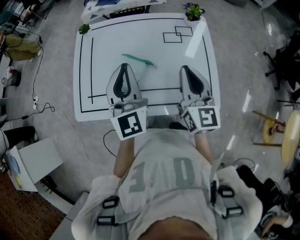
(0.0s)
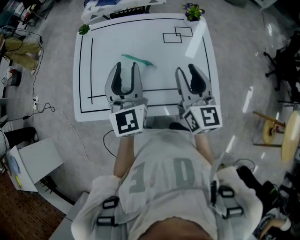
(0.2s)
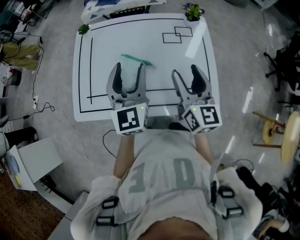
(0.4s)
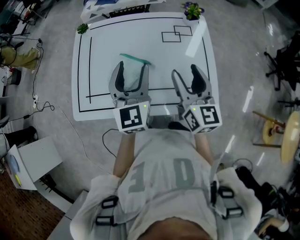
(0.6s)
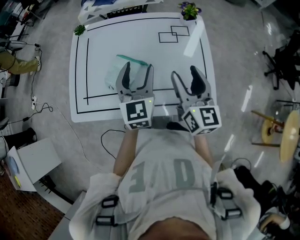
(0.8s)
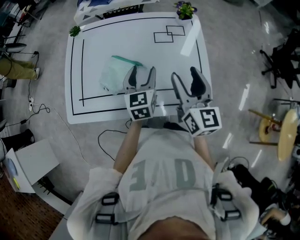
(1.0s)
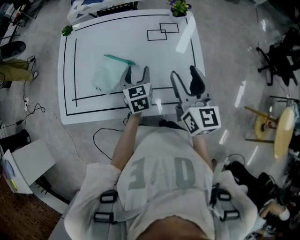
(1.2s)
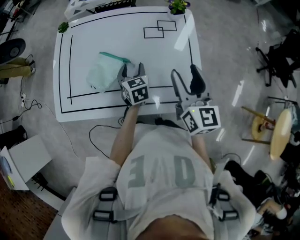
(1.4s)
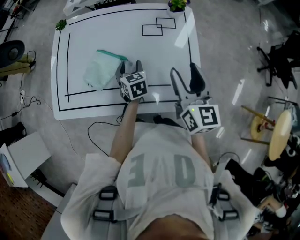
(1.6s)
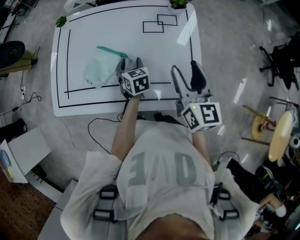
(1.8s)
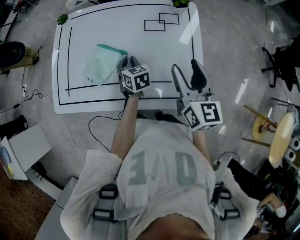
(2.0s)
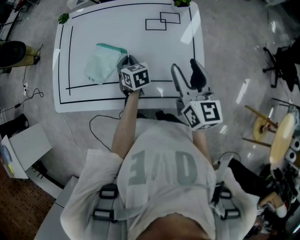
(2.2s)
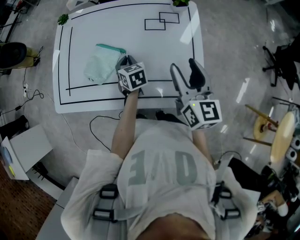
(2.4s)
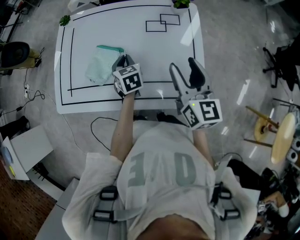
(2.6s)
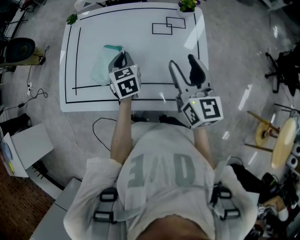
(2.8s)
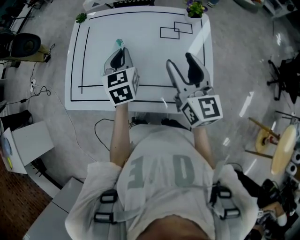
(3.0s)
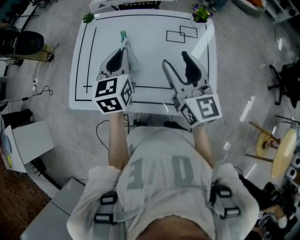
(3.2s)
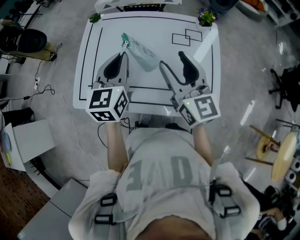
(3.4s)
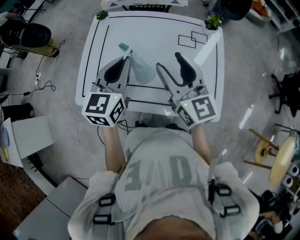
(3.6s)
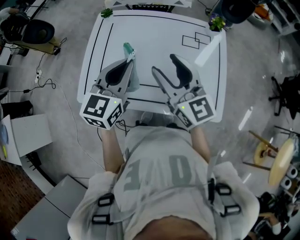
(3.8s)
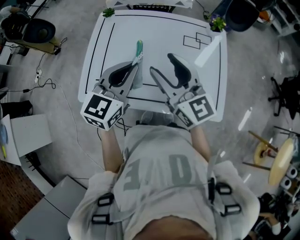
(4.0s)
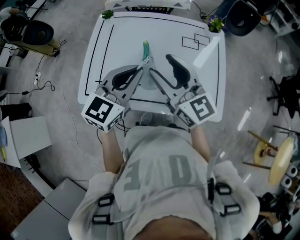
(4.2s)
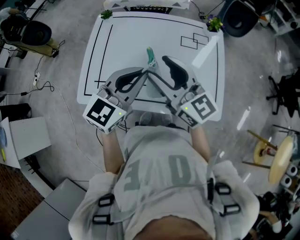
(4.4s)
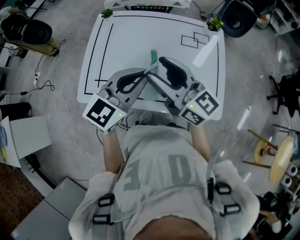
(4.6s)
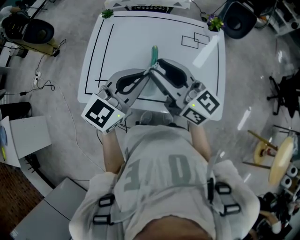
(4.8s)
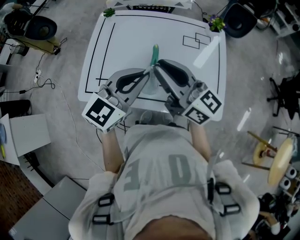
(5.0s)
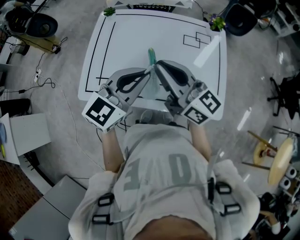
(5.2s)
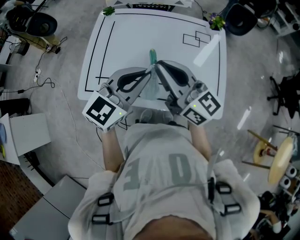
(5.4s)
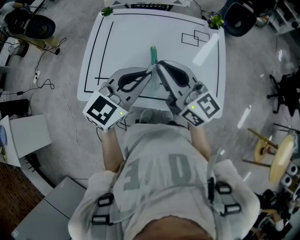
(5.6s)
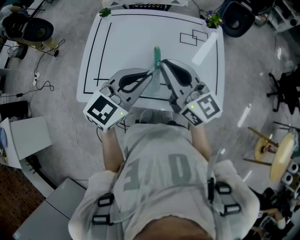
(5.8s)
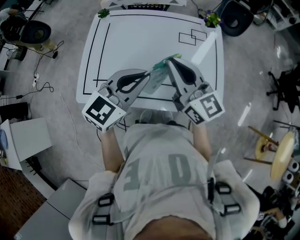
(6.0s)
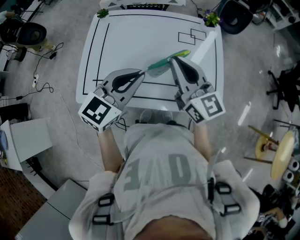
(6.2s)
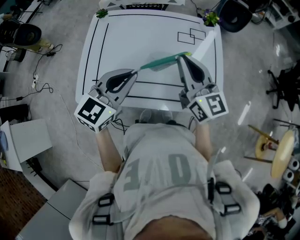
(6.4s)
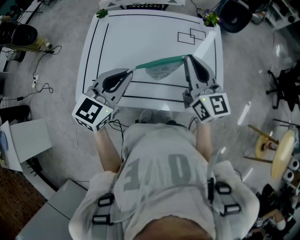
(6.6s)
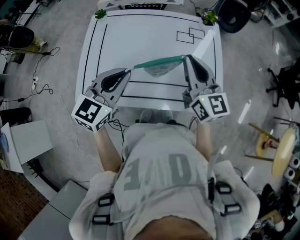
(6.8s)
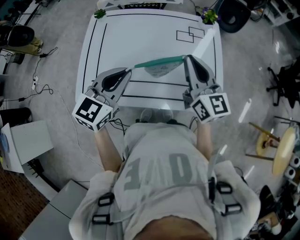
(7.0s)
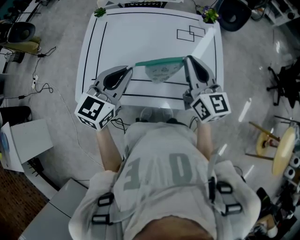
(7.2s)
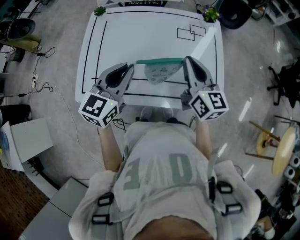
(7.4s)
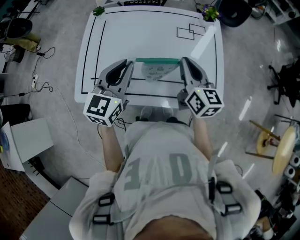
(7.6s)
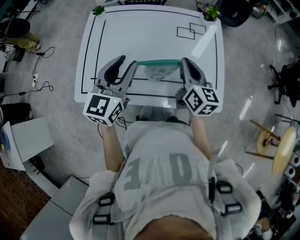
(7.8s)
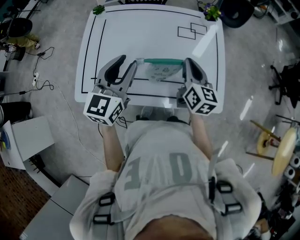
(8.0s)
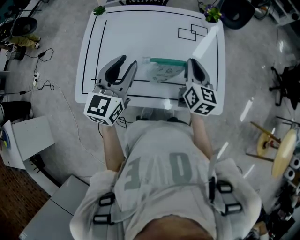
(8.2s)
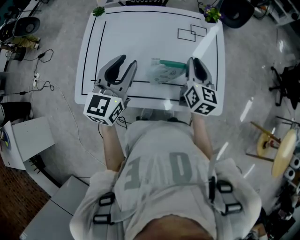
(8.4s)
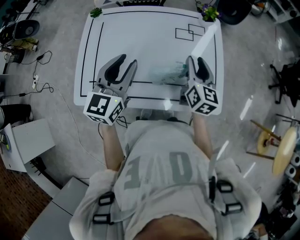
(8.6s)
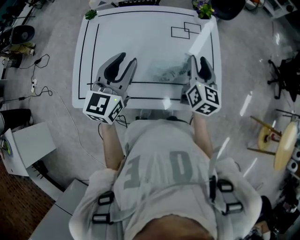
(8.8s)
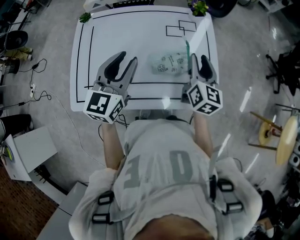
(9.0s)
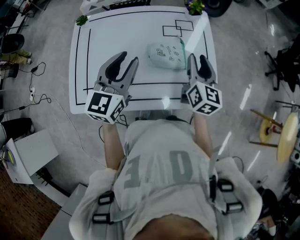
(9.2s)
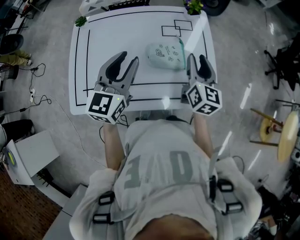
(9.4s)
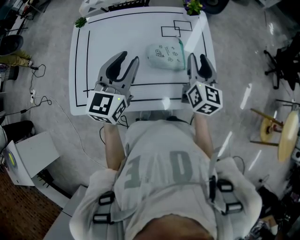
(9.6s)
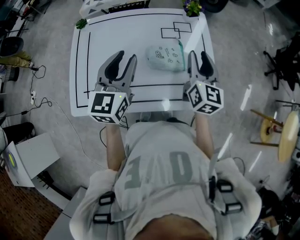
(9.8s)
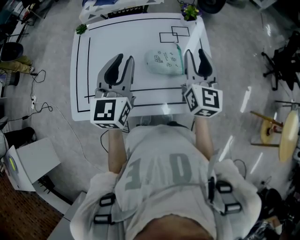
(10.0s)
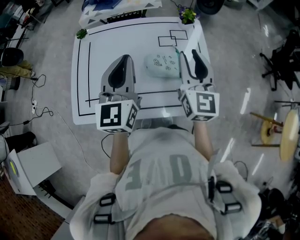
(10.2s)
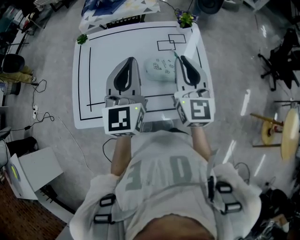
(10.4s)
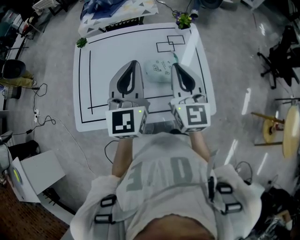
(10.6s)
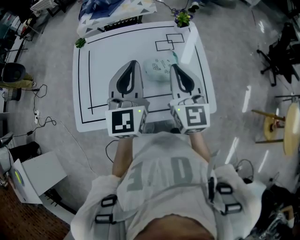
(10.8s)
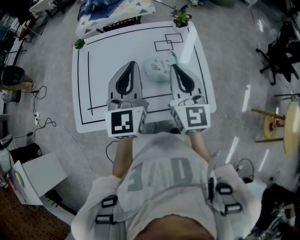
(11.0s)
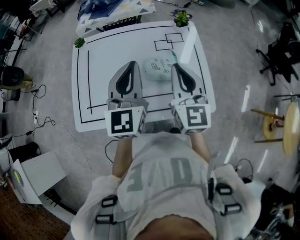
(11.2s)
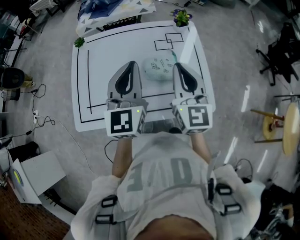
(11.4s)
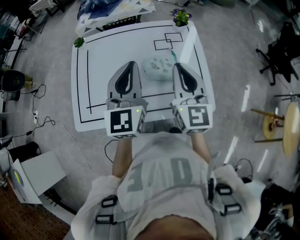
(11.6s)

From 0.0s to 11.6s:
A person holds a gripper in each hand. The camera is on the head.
From 0.0s to 1.4s: The right gripper shifts roughly 10 cm to the right, and opens its fingers; the left gripper heads downward, covering some 25 cm, points its fingers some 40 degrees further downward, and opens.
From 1.4s to 2.8s: The left gripper shifts roughly 10 cm upward and to the left, and closes up.
From 2.8s to 4.4s: The left gripper is displaced upward and backward by about 20 cm, and rotates some 50 degrees, while the right gripper shifts about 20 cm to the left, and changes its angle by roughly 30 degrees.
From 4.4s to 5.8s: The right gripper closes.
From 5.8s to 7.2s: The left gripper is displaced to the left by some 5 cm. Meanwhile the right gripper moves to the right, about 10 cm, and changes its angle by about 20 degrees.
From 7.2s to 8.8s: The right gripper heads to the right, downward and forward, covering roughly 10 cm, rotates about 30 degrees, and opens up, while the left gripper moves forward, some 5 cm, and opens its fingers.
From 8.8s to 10.2s: The left gripper shifts roughly 5 cm upward, and closes up. Meanwhile the right gripper heads upward, covering approximately 10 cm, and turns by some 20 degrees.
From 10.2s to 11.6s: The right gripper closes up.

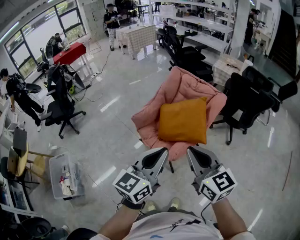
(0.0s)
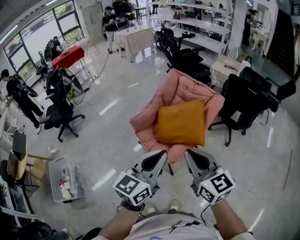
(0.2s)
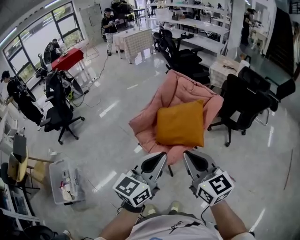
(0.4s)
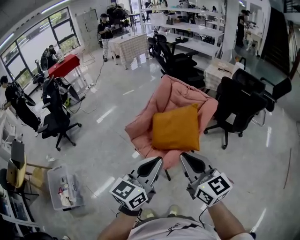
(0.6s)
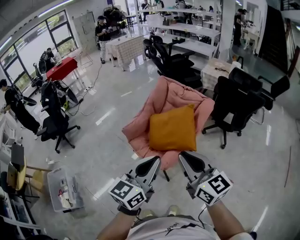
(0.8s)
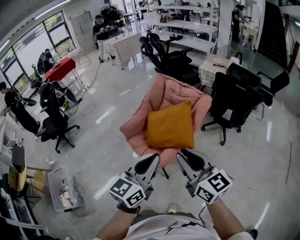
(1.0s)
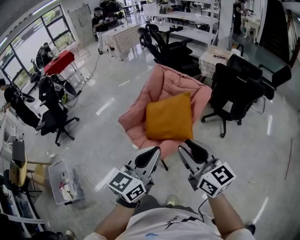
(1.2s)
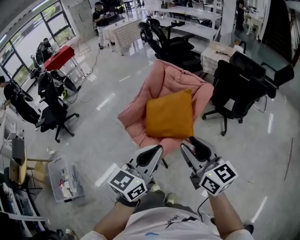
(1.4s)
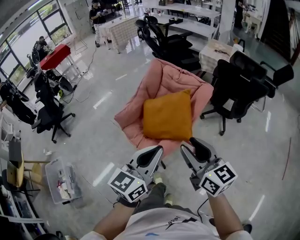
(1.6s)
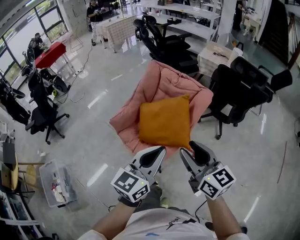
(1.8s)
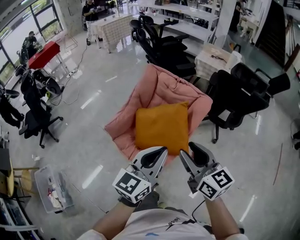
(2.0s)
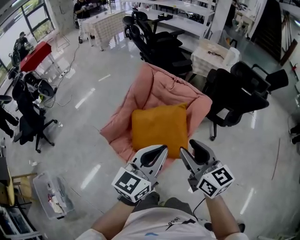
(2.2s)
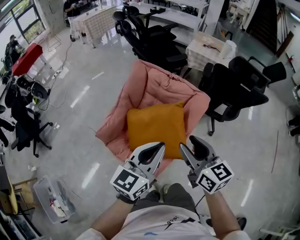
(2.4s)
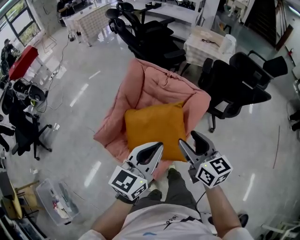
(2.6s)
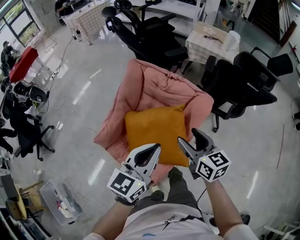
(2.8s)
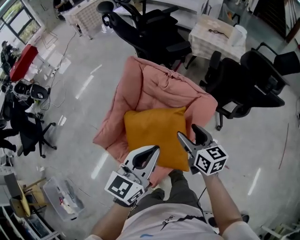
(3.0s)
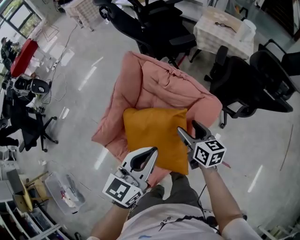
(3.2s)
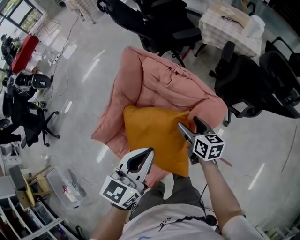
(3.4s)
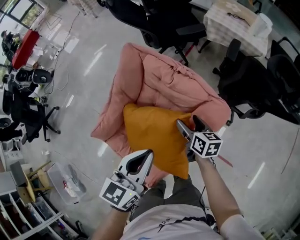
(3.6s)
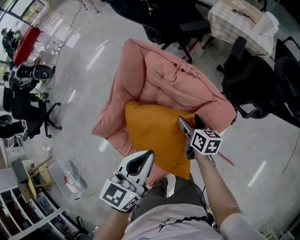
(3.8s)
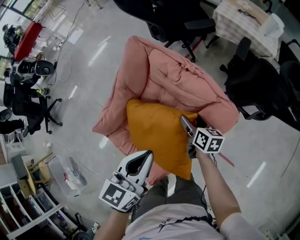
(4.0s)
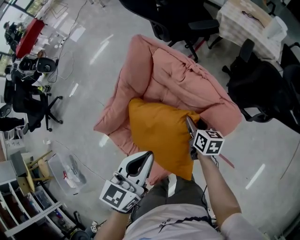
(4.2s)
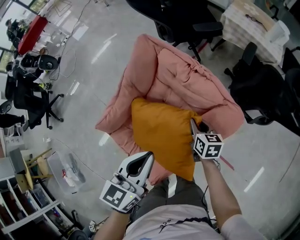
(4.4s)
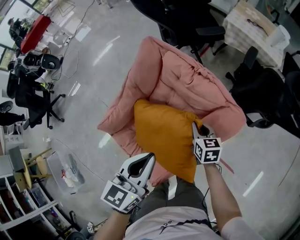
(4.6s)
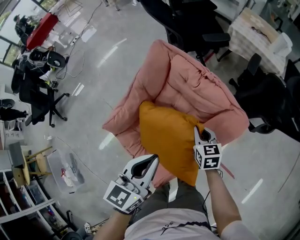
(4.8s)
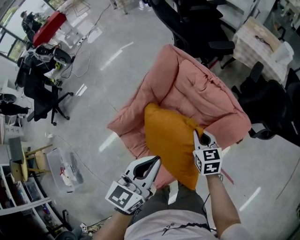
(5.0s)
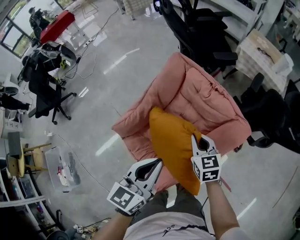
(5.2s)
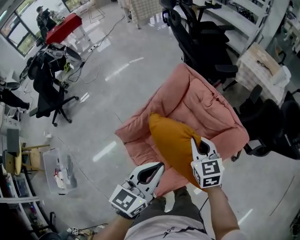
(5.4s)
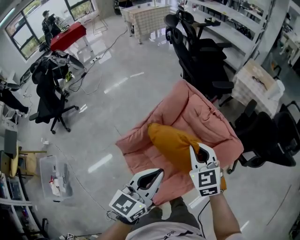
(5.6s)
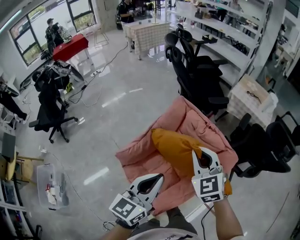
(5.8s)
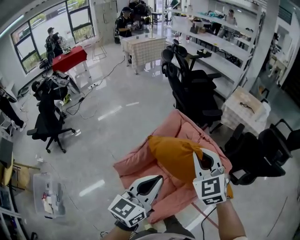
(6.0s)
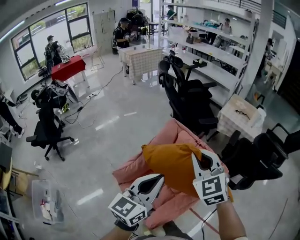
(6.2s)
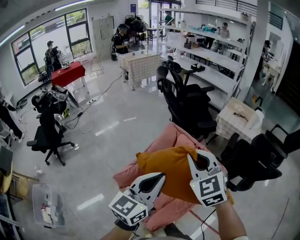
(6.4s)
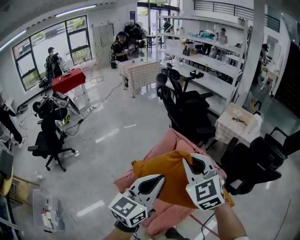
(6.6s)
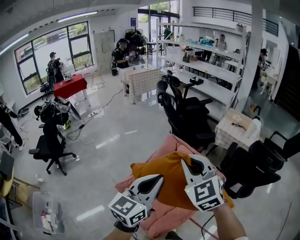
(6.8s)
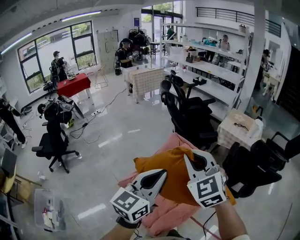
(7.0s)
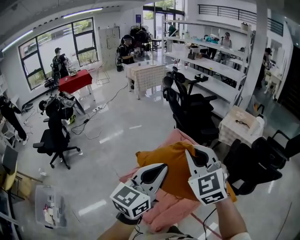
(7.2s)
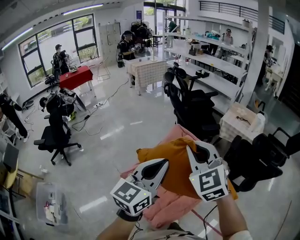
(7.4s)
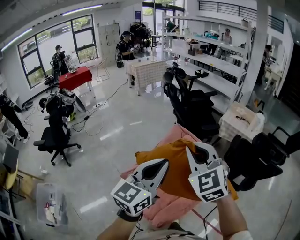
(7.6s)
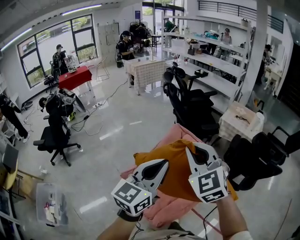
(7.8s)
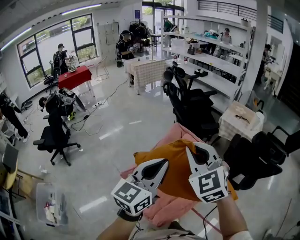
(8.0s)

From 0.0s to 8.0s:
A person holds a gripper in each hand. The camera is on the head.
From 0.0s to 1.6s: The two grippers go roughly 15 cm to the right and forward. The right gripper opens up.
From 1.6s to 3.2s: The two grippers travel together, forward, some 40 cm. The right gripper is displaced downward by some 25 cm, turns by roughly 30 degrees, and opens its fingers.
From 3.2s to 4.8s: The left gripper heads to the left, covering about 5 cm. The right gripper is displaced downward by some 10 cm, changes its angle by some 20 degrees, and closes its fingers.
From 4.8s to 6.4s: The left gripper travels upward by about 25 cm, and changes its angle by roughly 20 degrees. The right gripper shifts roughly 40 cm upward, and twists approximately 40 degrees counterclockwise, seen from behind.
From 6.4s to 8.0s: The right gripper travels backward and upward by roughly 10 cm. The left gripper moves upward, some 5 cm.

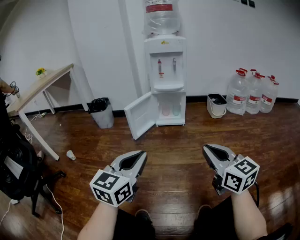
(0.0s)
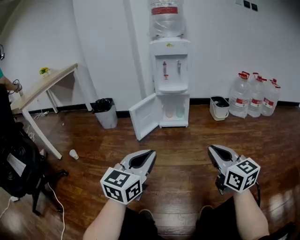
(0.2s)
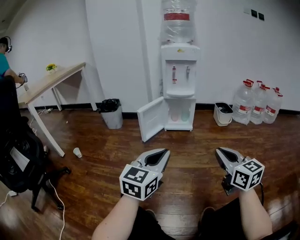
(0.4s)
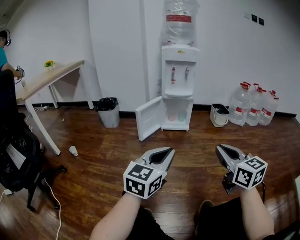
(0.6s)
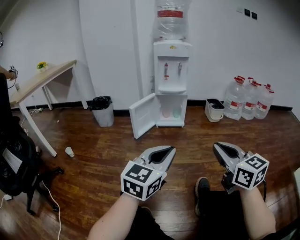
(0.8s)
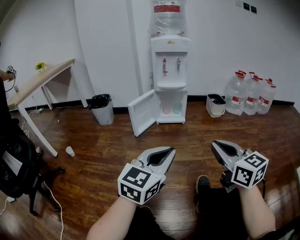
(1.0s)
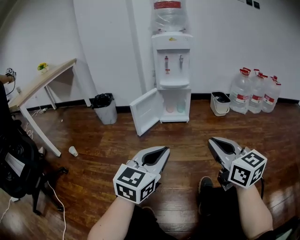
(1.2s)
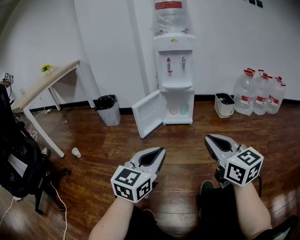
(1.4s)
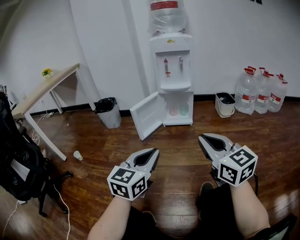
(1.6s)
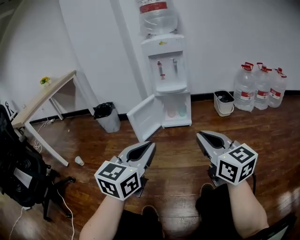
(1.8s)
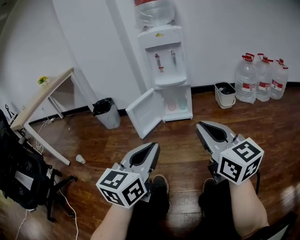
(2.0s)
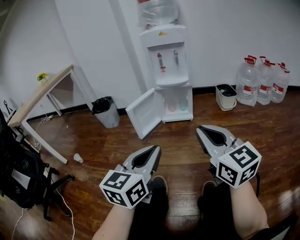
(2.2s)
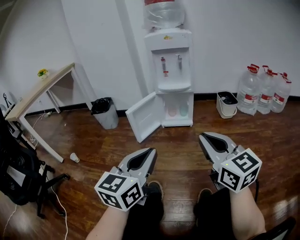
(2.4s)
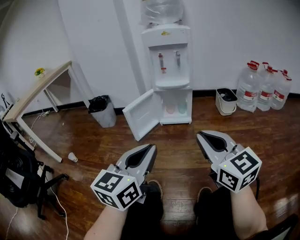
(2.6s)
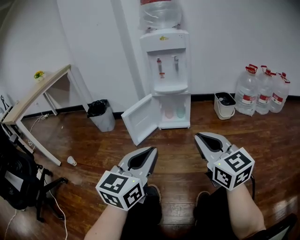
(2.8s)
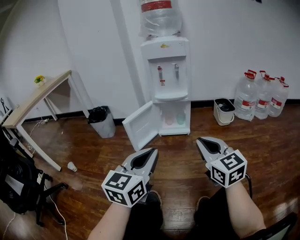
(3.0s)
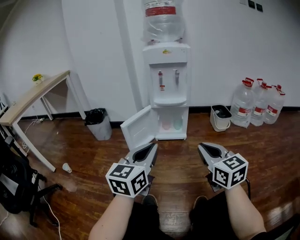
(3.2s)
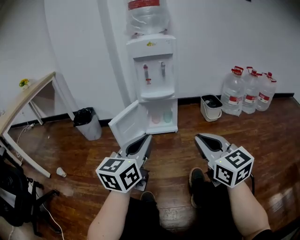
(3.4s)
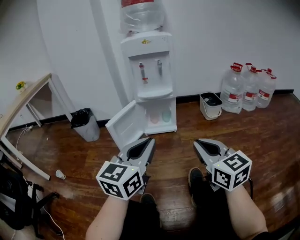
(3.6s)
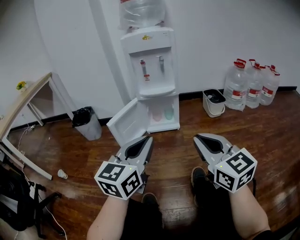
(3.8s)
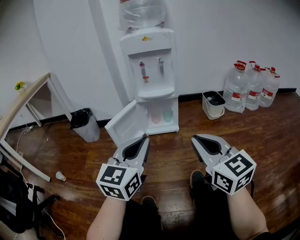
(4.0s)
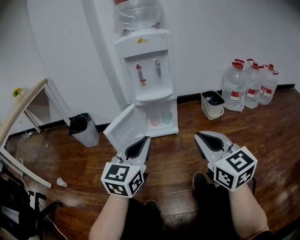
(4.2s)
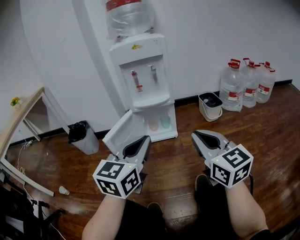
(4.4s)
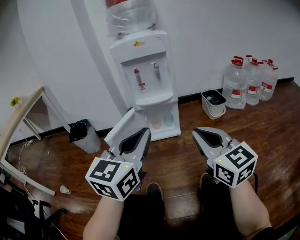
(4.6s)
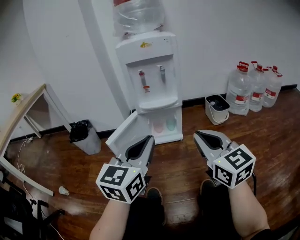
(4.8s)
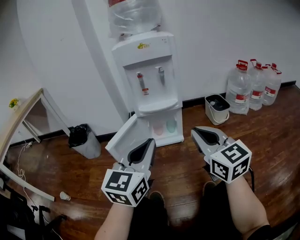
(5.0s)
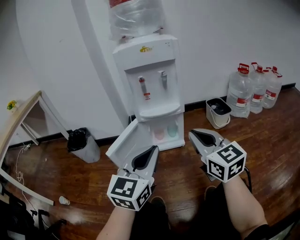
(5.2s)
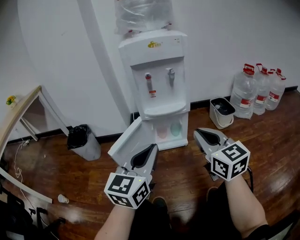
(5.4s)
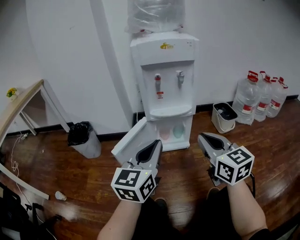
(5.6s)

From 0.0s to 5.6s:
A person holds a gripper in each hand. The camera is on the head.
From 1.4s to 2.8s: Both grippers move forward, roughly 10 cm.
From 2.8s to 4.2s: The right gripper moves forward, some 10 cm. Meanwhile the left gripper travels forward by roughly 15 cm.
From 4.2s to 5.6s: The left gripper is displaced forward and to the left by roughly 15 cm, while the right gripper travels forward by some 15 cm.
